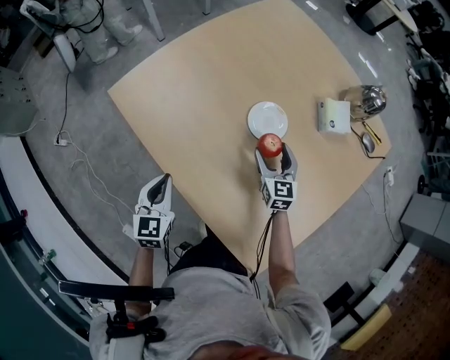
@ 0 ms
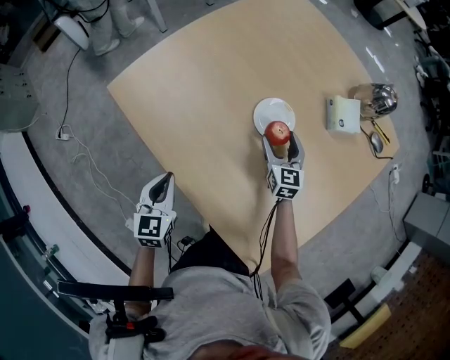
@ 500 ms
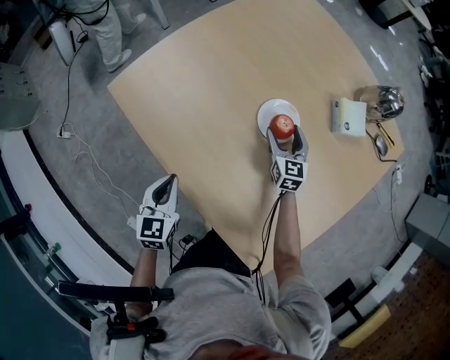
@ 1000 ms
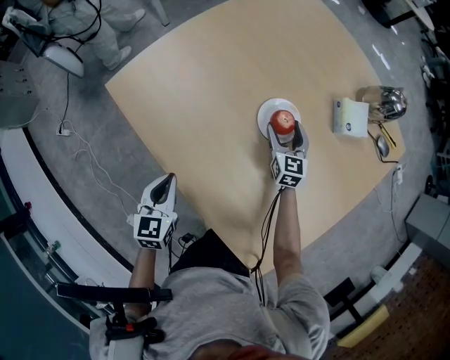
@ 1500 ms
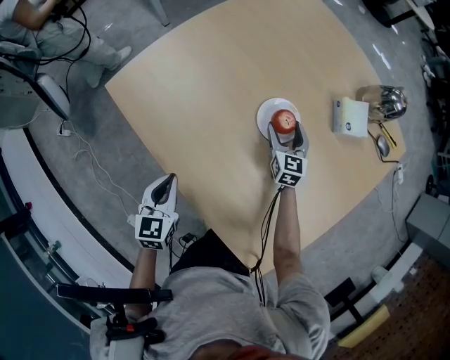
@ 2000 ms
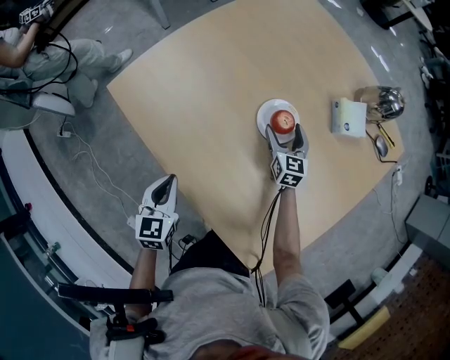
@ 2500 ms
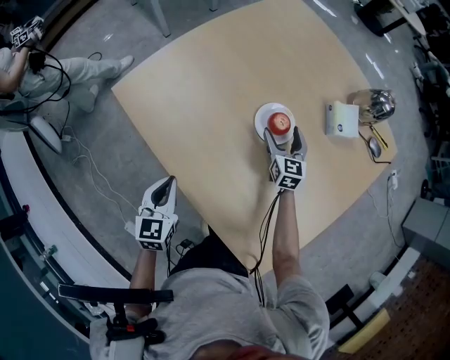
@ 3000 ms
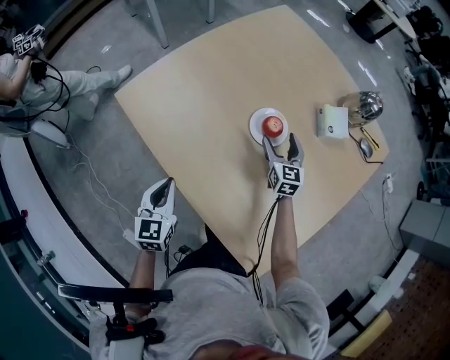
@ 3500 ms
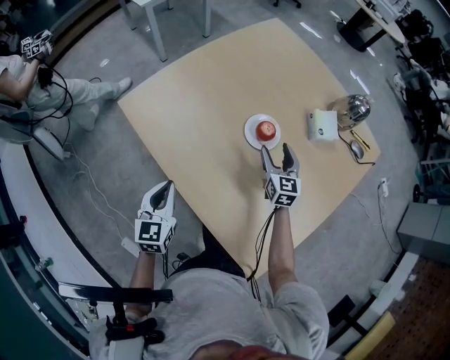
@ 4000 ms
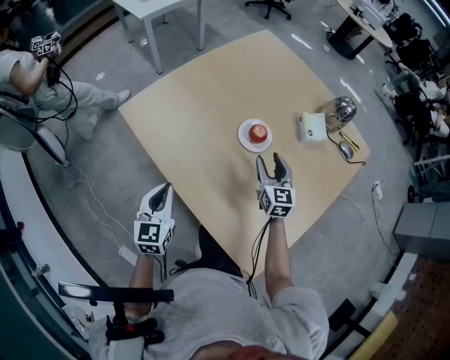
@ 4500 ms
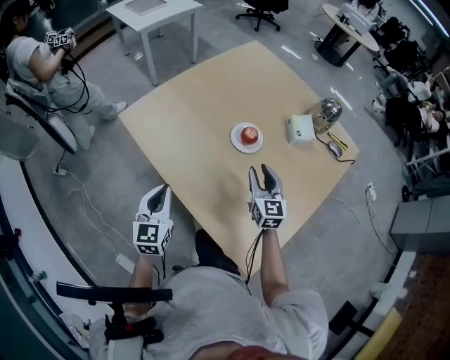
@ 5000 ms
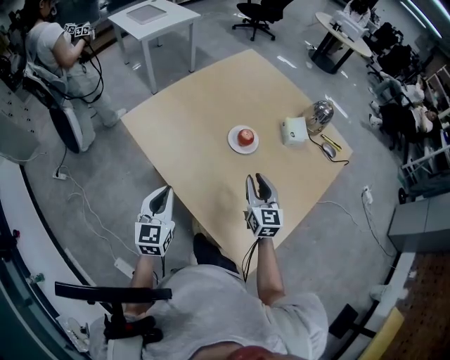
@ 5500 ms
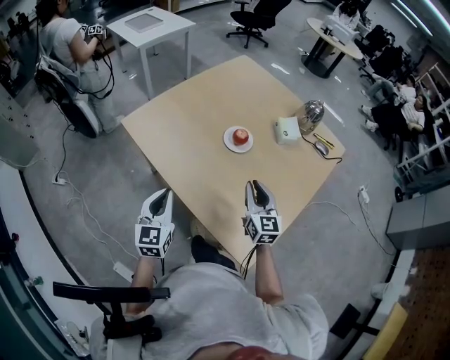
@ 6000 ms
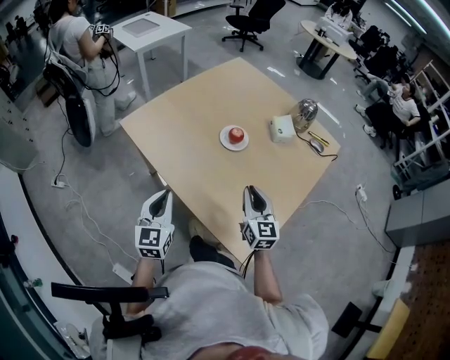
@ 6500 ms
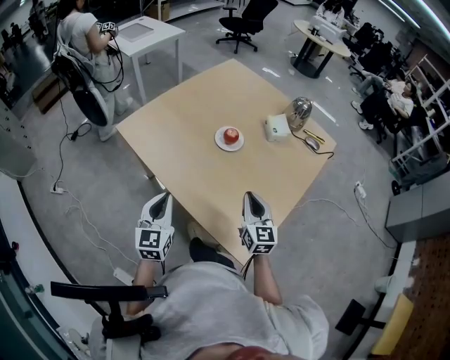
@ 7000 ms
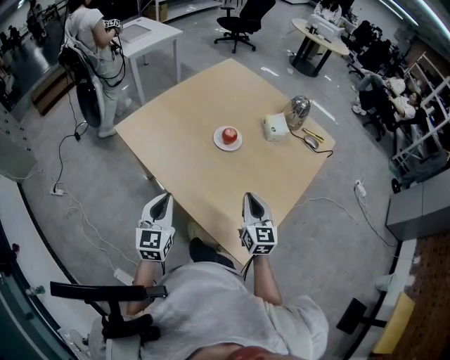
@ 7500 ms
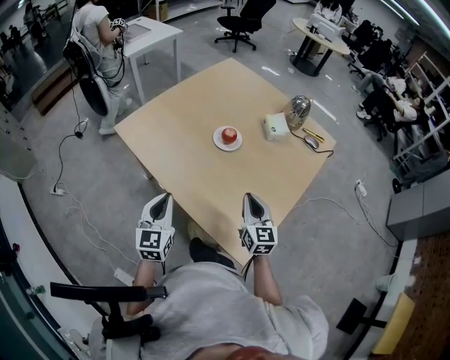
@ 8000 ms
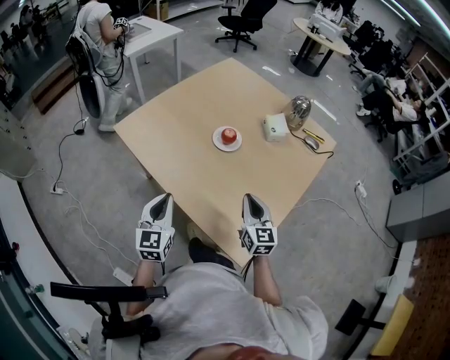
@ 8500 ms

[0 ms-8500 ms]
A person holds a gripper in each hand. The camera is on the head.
0 ms to 2000 ms: The right gripper is displaced forward and downward by roughly 10 cm.
2000 ms to 4000 ms: The left gripper moves upward, about 10 cm. Meanwhile the right gripper travels upward and backward by roughly 15 cm.
4000 ms to 6500 ms: The left gripper goes roughly 15 cm backward and upward. The right gripper is displaced backward and upward by about 30 cm, and closes its fingers.
6500 ms to 8500 ms: There are only small adjustments of the grippers.

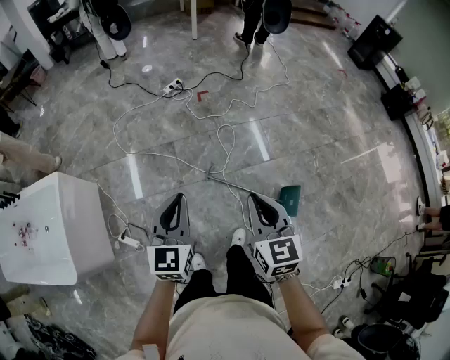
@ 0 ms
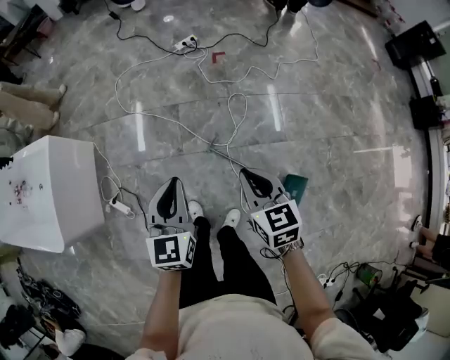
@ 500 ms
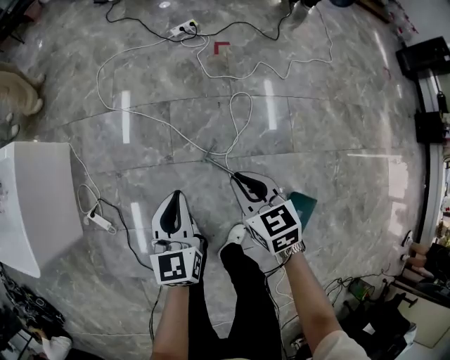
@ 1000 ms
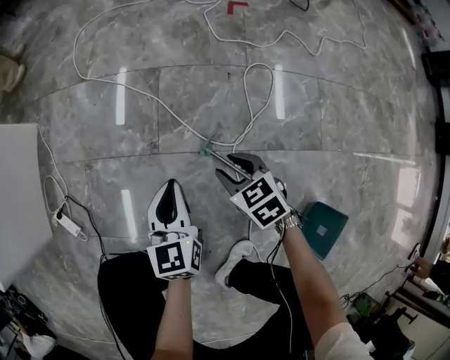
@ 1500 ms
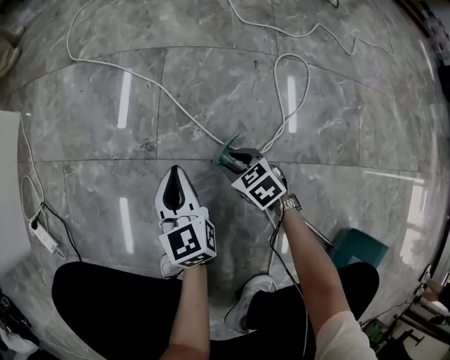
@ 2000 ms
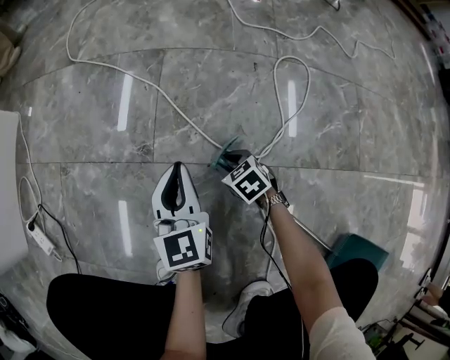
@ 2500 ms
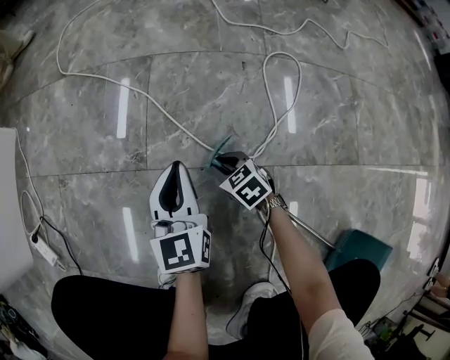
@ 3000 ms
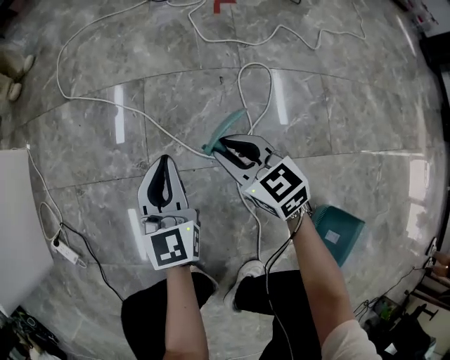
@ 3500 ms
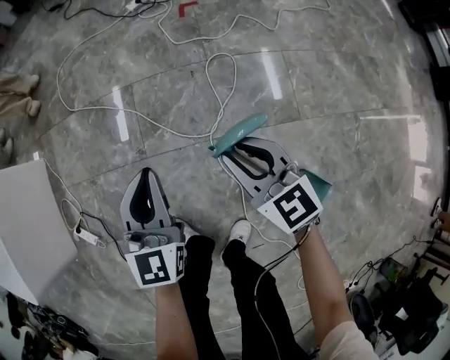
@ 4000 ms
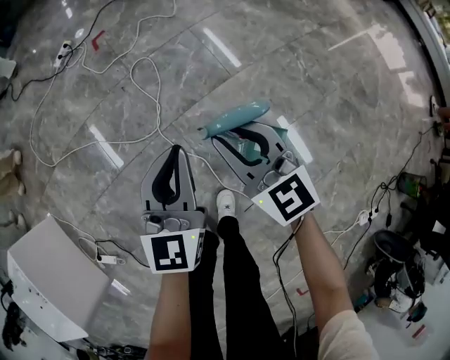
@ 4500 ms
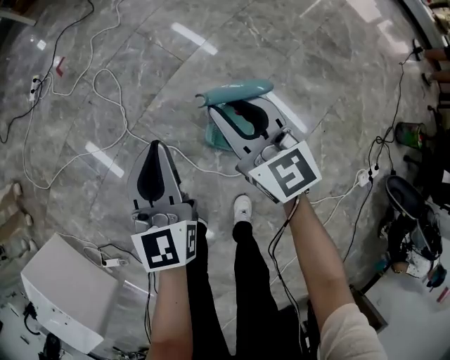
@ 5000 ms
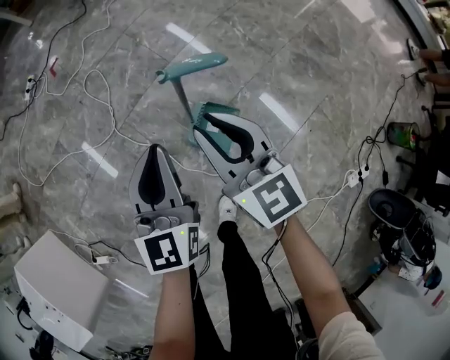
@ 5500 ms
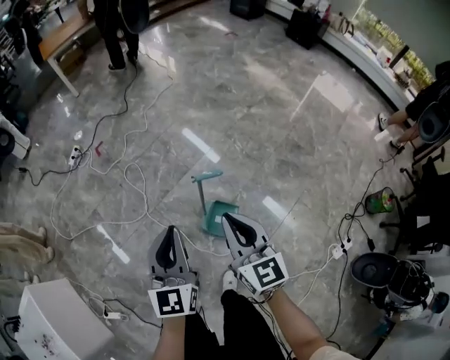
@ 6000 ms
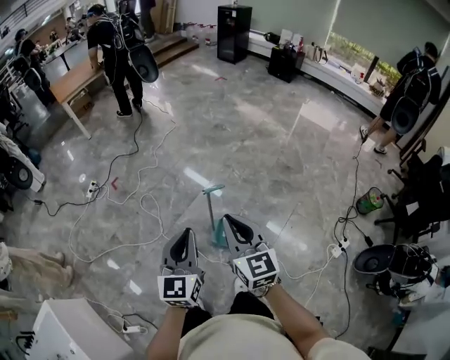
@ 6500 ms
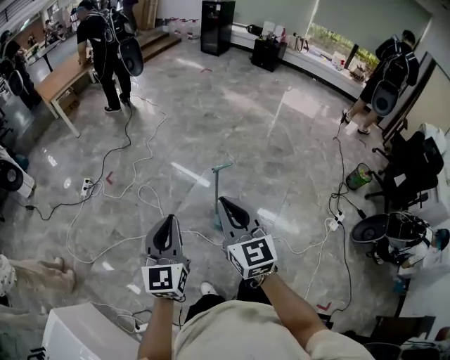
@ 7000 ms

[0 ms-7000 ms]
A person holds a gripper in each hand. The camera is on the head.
0 ms to 2000 ms: Both grippers travel together downward, about 1 m. The left gripper swivels some 40 degrees. The right gripper tilts its fingers some 30 degrees downward, and opens.
2000 ms to 3500 ms: The right gripper moves upward, some 25 cm, and changes its angle by about 30 degrees, while the left gripper goes roughly 20 cm upward and to the right.
3500 ms to 5000 ms: Both grippers are carried about 60 cm. The right gripper swivels some 60 degrees. The left gripper changes its angle by approximately 40 degrees.
5000 ms to 7000 ms: The two grippers go approximately 60 cm upward and backward. The right gripper changes its angle by some 30 degrees, while the left gripper swivels roughly 20 degrees.

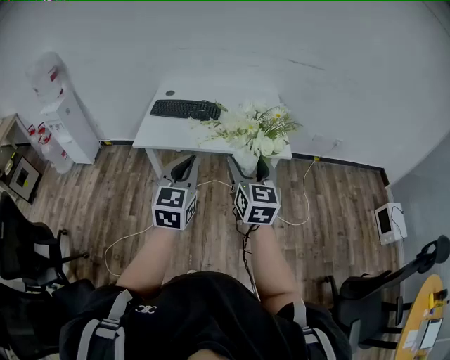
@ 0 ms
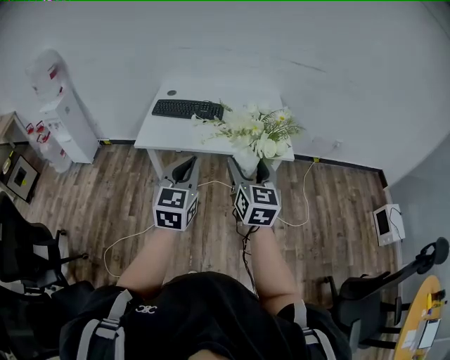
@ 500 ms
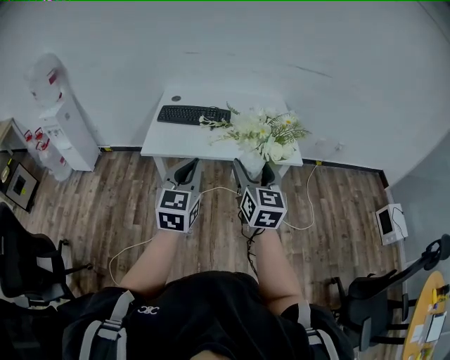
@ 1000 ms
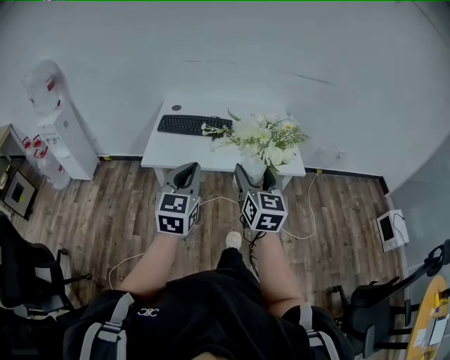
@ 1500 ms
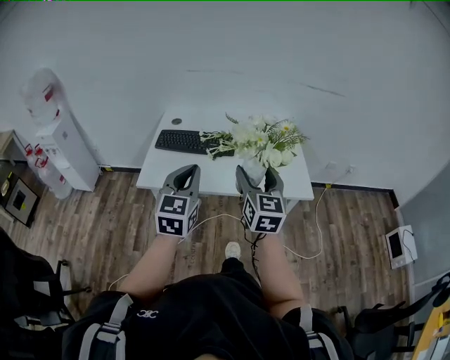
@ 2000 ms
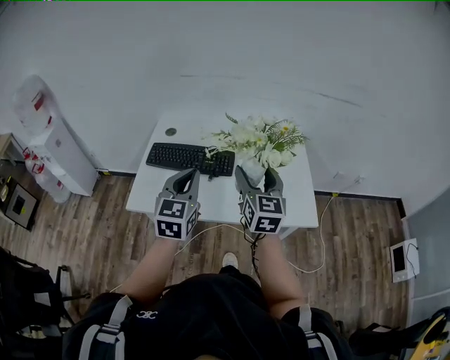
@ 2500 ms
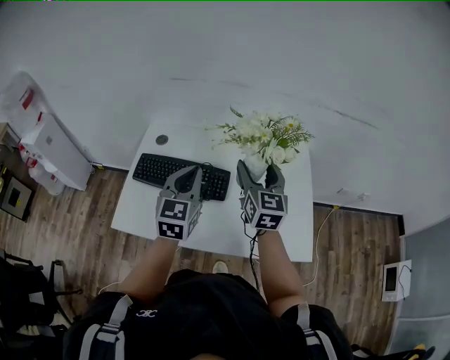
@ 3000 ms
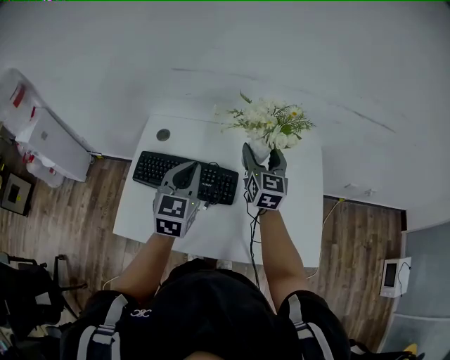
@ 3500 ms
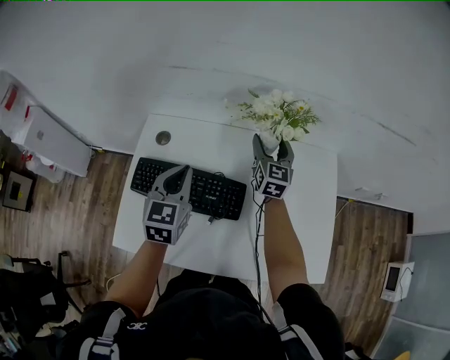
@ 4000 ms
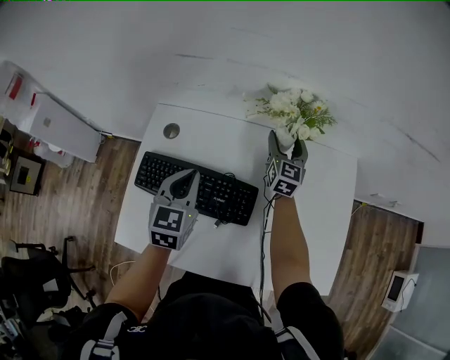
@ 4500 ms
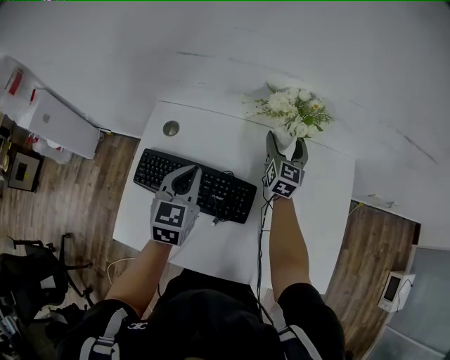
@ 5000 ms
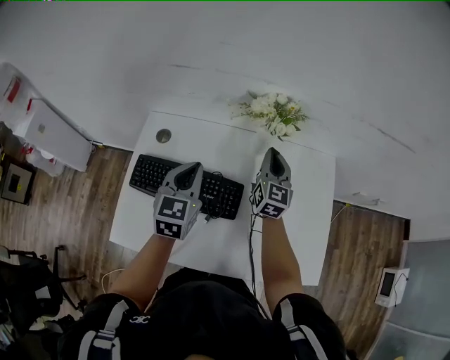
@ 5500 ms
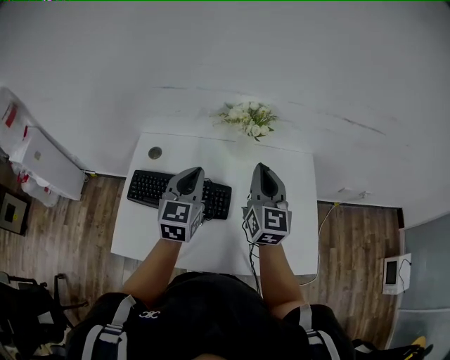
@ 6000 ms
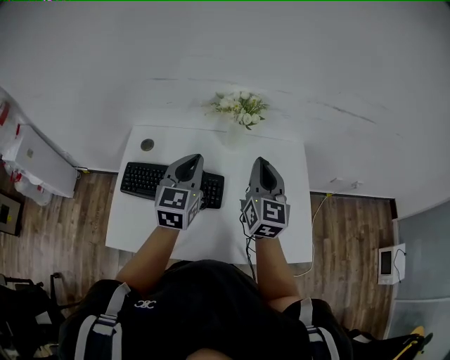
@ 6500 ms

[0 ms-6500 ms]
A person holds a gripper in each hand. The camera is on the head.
0 ms to 2000 ms: The left gripper goes roughly 25 cm forward and to the left, while the right gripper travels forward by about 20 cm.
2000 ms to 4500 ms: The pair of grippers is taken forward, roughly 70 cm. The left gripper rotates about 20 degrees.
4500 ms to 6500 ms: The left gripper heads upward, to the right and backward, covering some 20 cm, while the right gripper moves backward and upward, roughly 35 cm, and closes.

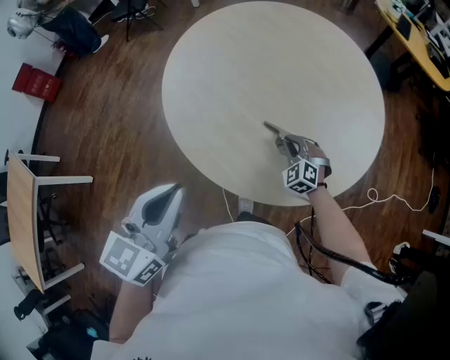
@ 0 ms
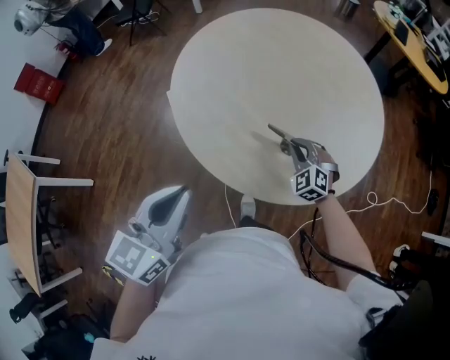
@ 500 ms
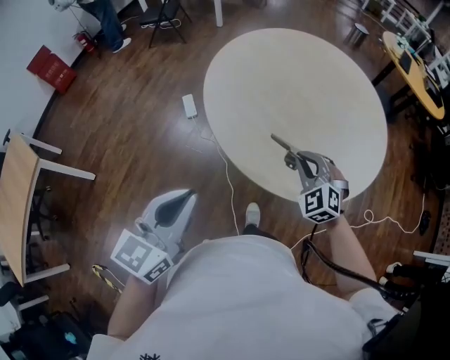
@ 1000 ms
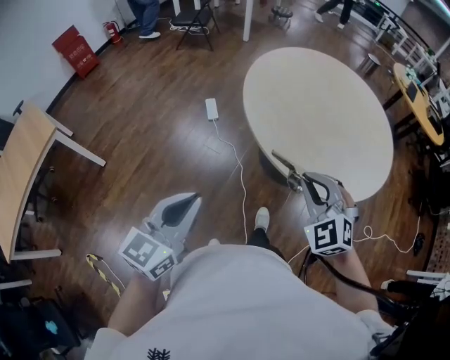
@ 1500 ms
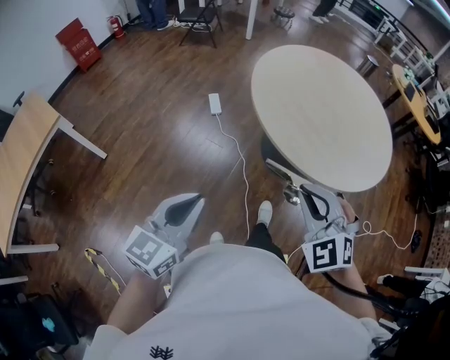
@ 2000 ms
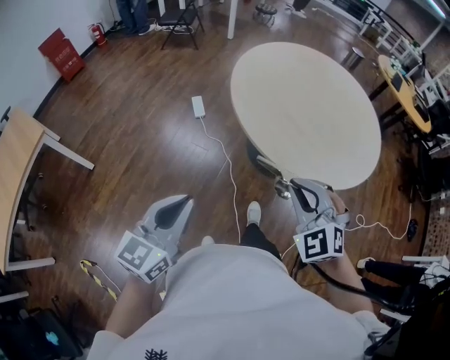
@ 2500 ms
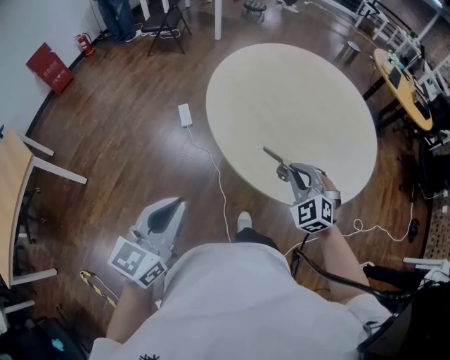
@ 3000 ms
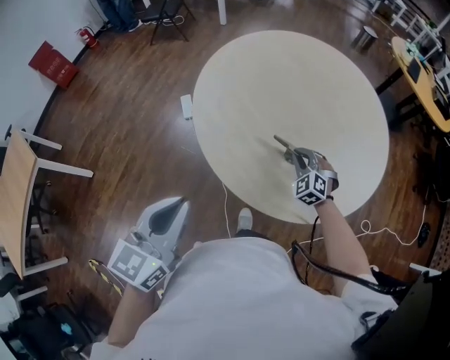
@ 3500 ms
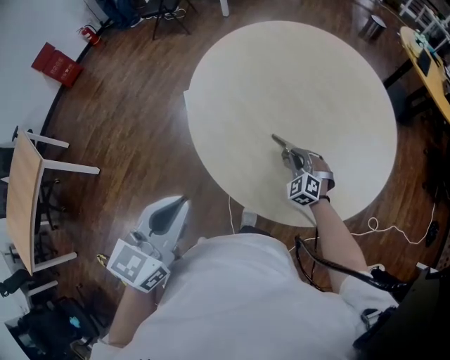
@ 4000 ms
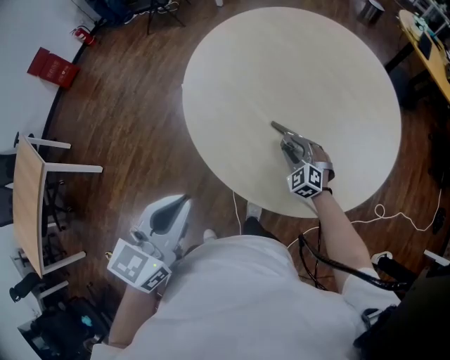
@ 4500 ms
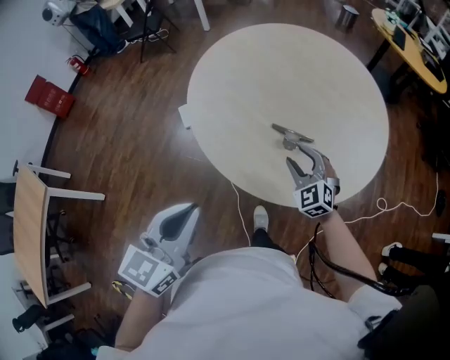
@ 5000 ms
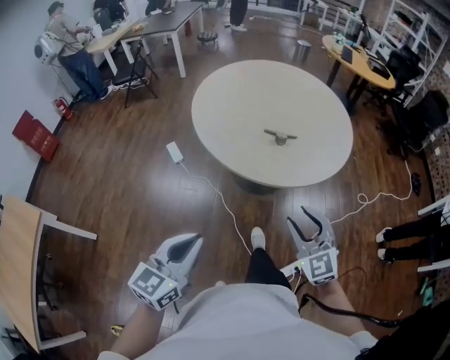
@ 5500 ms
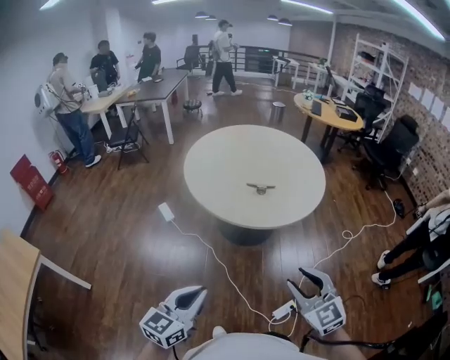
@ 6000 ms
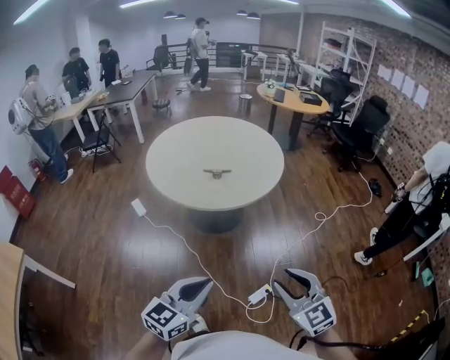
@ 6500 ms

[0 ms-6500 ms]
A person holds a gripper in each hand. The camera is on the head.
0 ms to 2000 ms: The left gripper heads backward and to the left, covering approximately 25 cm, while the right gripper travels upward, backward and to the left by approximately 40 cm.
2000 ms to 4500 ms: The right gripper moves downward, forward and to the right, about 40 cm, and opens. The left gripper moves forward and to the right, roughly 20 cm.
4500 ms to 6500 ms: The left gripper shifts by about 30 cm, and rotates roughly 40 degrees, while the right gripper shifts by approximately 60 cm, and turns by approximately 50 degrees.
